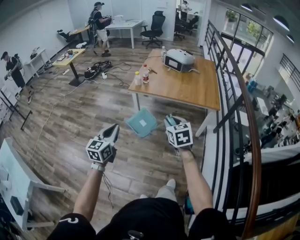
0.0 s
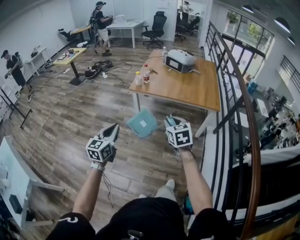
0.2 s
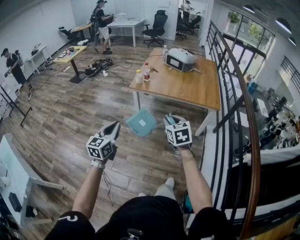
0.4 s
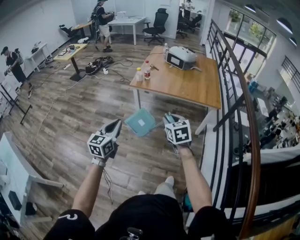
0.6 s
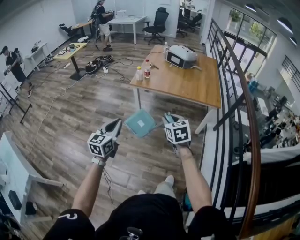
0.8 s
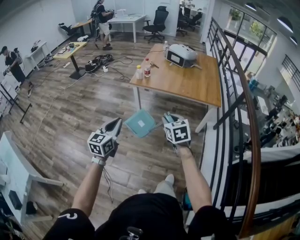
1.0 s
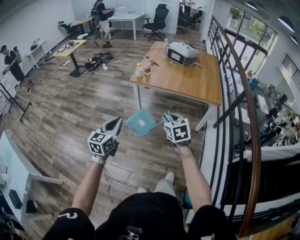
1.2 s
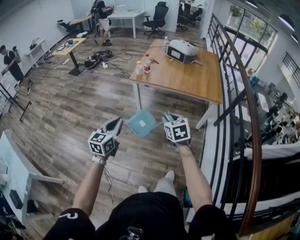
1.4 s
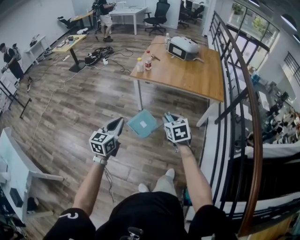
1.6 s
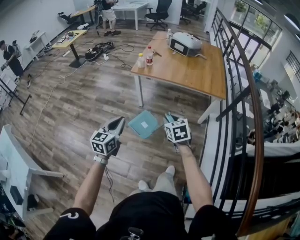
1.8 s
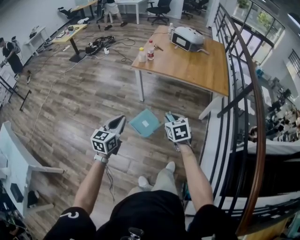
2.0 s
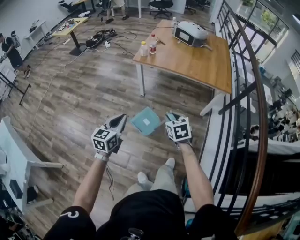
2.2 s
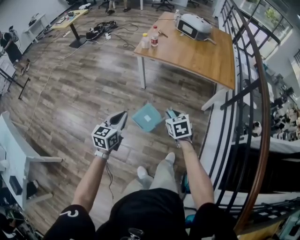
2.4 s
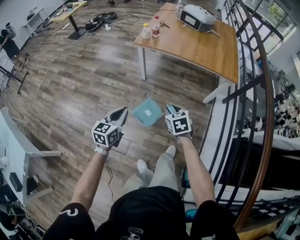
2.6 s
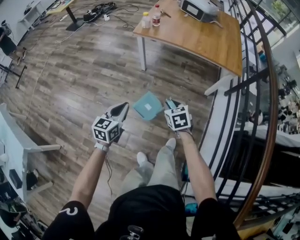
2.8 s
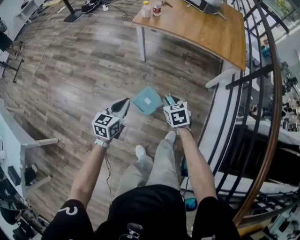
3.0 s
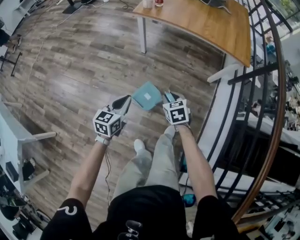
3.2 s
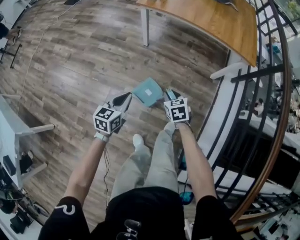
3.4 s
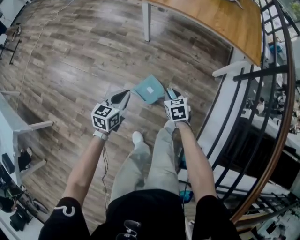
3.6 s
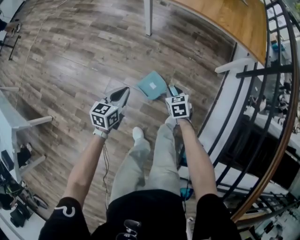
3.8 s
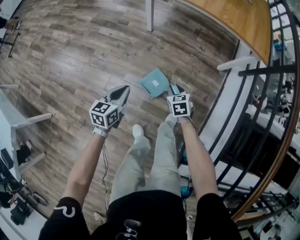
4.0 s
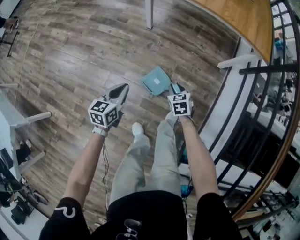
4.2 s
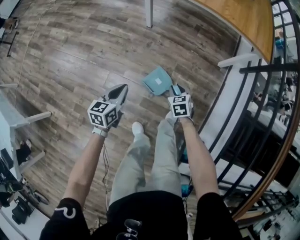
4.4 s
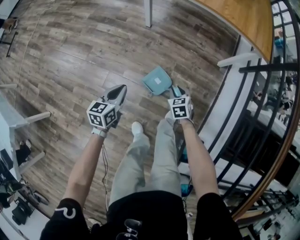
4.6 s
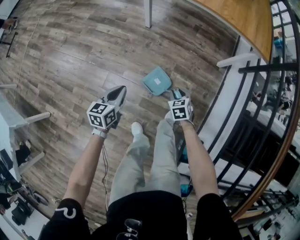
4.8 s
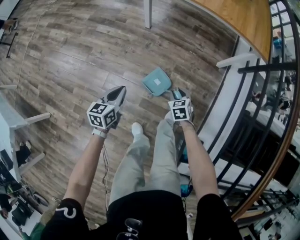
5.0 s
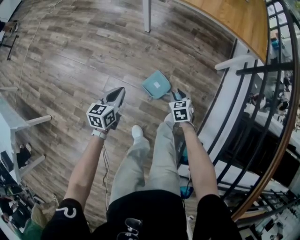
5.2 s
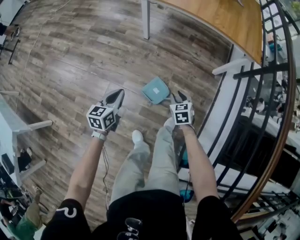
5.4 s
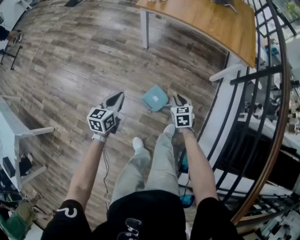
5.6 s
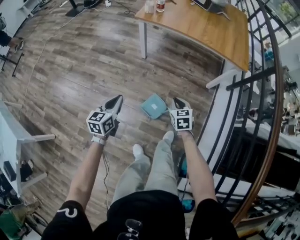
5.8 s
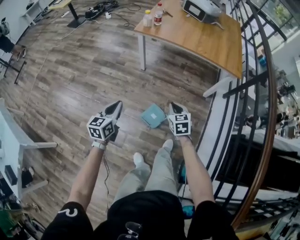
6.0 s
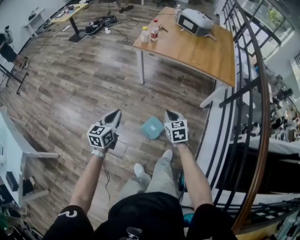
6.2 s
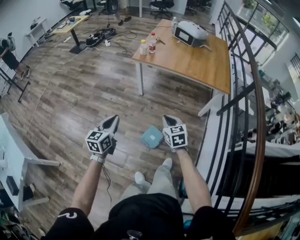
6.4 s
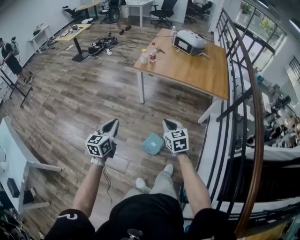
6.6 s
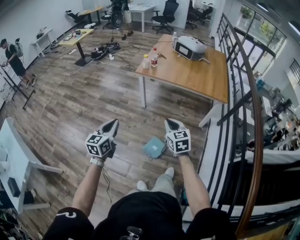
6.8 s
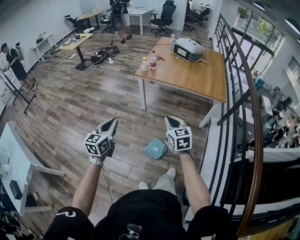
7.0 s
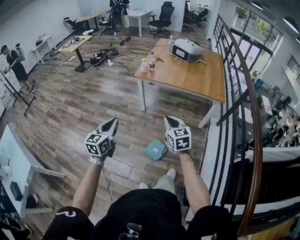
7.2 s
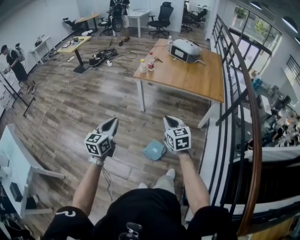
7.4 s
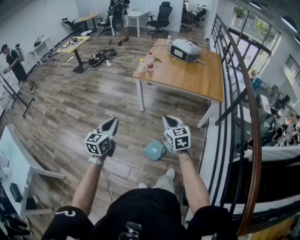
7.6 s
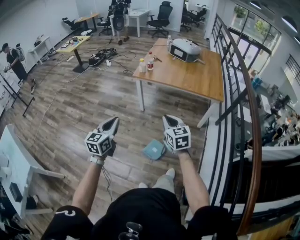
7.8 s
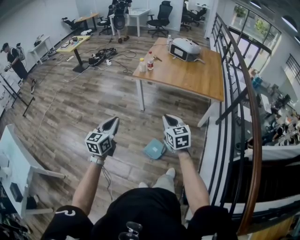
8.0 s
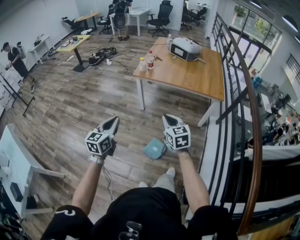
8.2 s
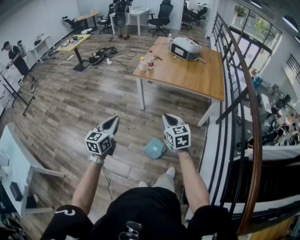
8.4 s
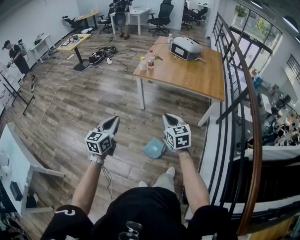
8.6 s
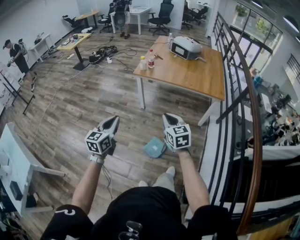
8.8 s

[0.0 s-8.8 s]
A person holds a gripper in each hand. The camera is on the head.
0.0 to 1.4 s: The grippers make only small movements.
1.4 to 3.0 s: Both grippers move downward, roughly 25 cm.
3.0 to 4.4 s: The two grippers go about 20 cm downward.
4.4 to 5.8 s: Both grippers move upward, roughly 15 cm.
5.8 to 7.4 s: Both grippers move upward, some 30 cm. The right gripper changes its angle by approximately 20 degrees.
7.4 to 8.8 s: Both grippers stay put.

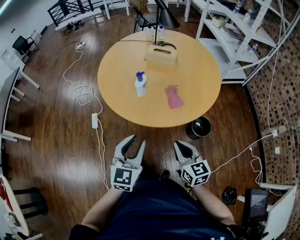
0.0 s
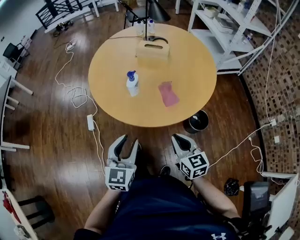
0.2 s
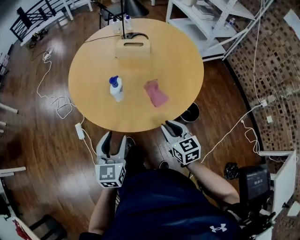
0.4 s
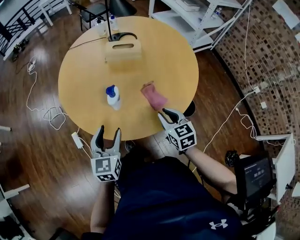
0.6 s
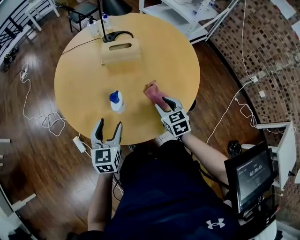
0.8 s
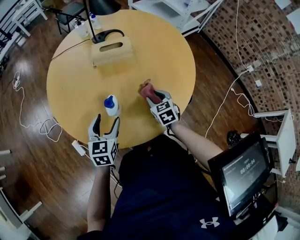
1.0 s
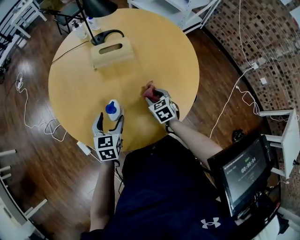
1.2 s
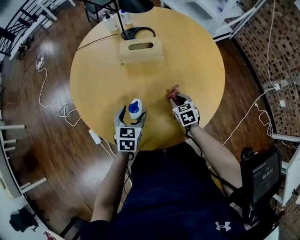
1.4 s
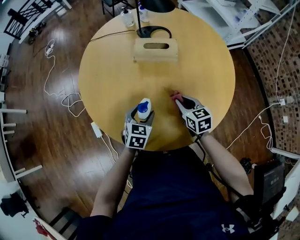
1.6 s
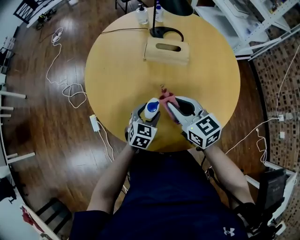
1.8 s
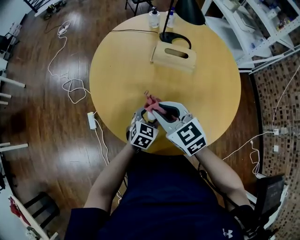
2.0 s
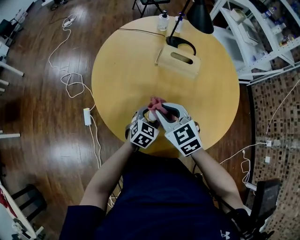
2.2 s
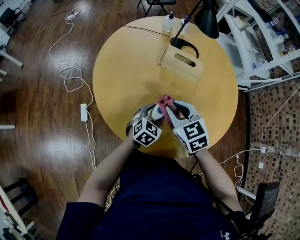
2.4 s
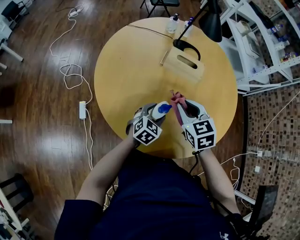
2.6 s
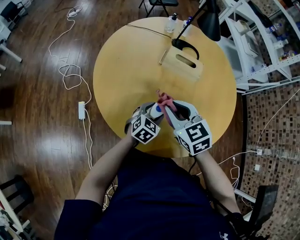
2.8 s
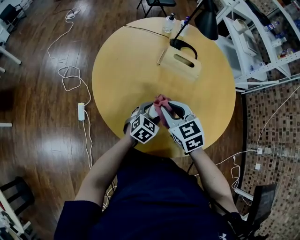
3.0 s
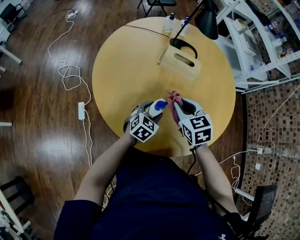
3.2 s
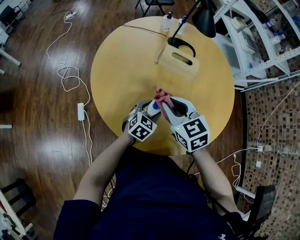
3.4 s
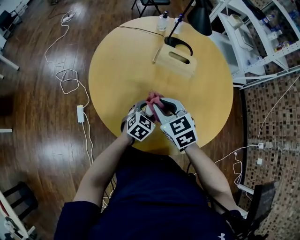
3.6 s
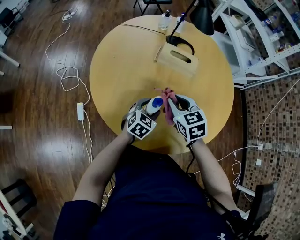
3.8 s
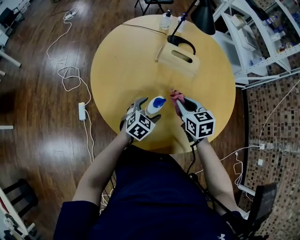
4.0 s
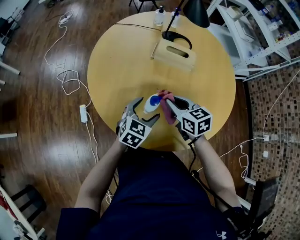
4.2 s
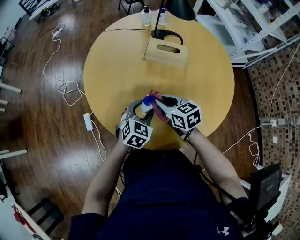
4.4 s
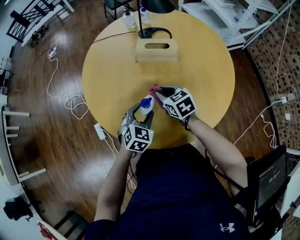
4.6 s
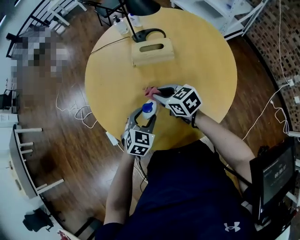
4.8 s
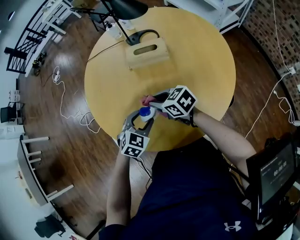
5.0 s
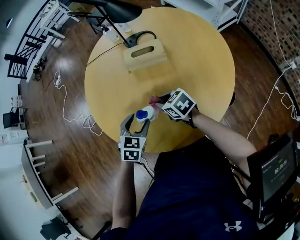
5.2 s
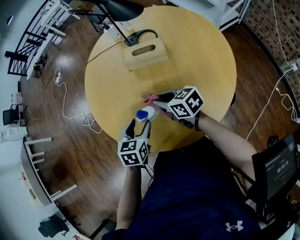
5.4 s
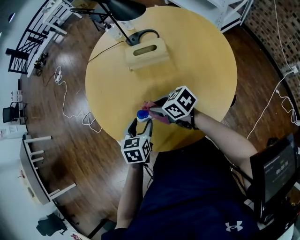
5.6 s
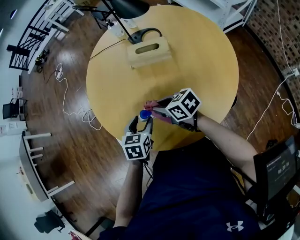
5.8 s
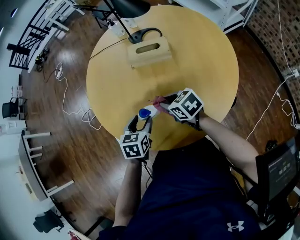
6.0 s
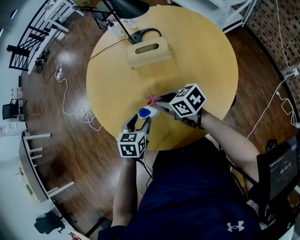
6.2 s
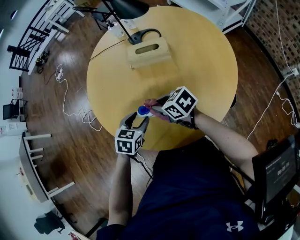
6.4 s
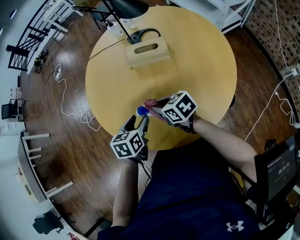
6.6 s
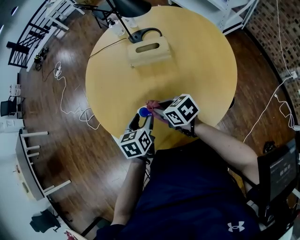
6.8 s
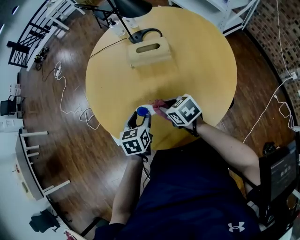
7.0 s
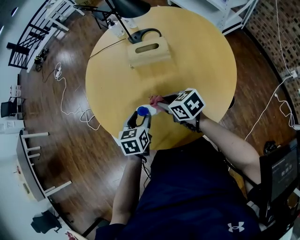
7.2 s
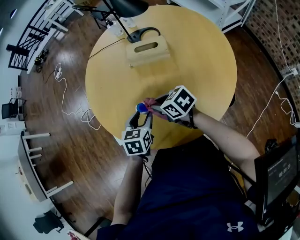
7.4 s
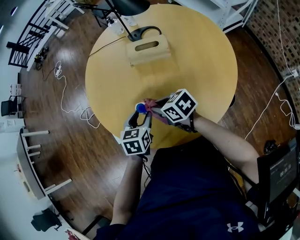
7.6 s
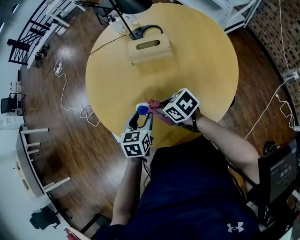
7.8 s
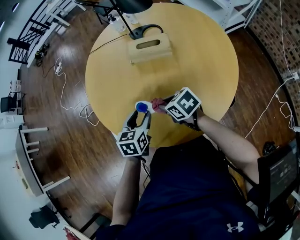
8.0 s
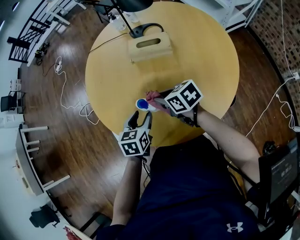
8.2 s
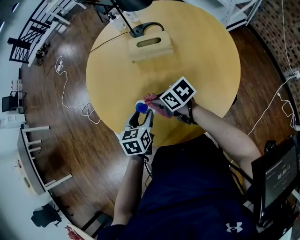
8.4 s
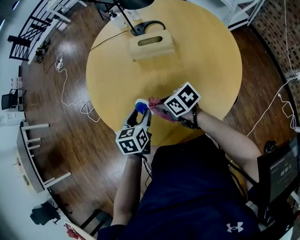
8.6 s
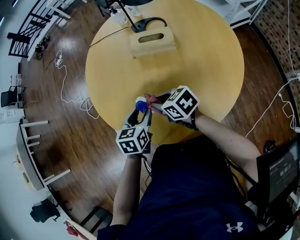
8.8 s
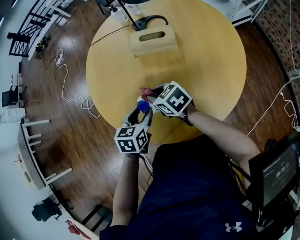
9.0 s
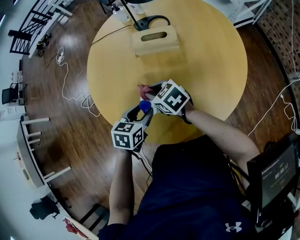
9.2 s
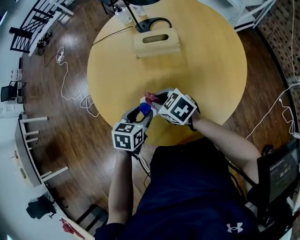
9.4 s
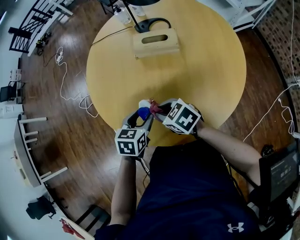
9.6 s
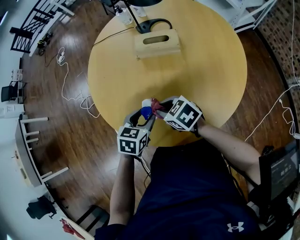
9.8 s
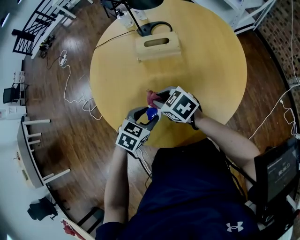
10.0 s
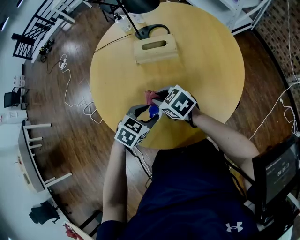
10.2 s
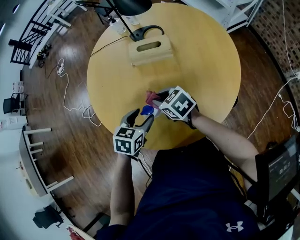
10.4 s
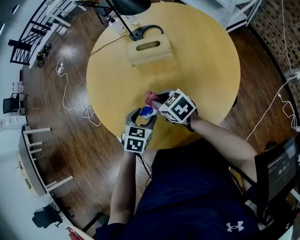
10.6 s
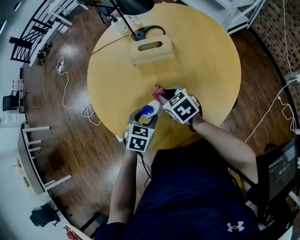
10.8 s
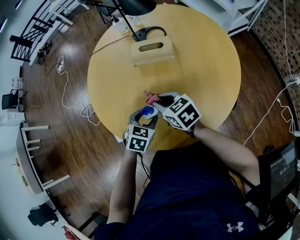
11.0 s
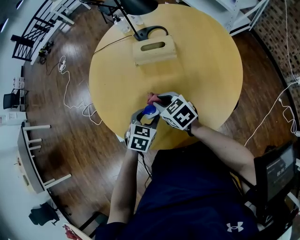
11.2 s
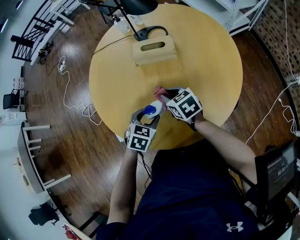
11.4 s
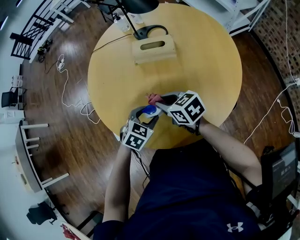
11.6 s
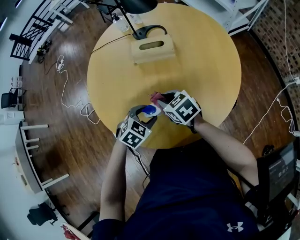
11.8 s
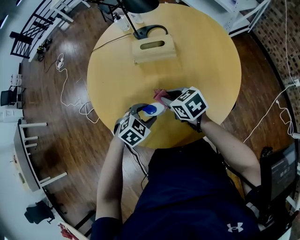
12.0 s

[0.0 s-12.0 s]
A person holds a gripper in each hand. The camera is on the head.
0.0 to 1.6 s: The right gripper is displaced forward by approximately 35 cm, and opens, then closes once more; the left gripper travels forward and downward by roughly 40 cm, swivels about 30 degrees, and opens up.
1.6 to 3.0 s: The right gripper swings left and right, some 15 cm each way, with 2 reversals, and swivels roughly 30 degrees.
3.0 to 4.4 s: The right gripper moves left and right over roughly 10 cm, changing direction 3 times, and turns by approximately 20 degrees.
4.4 to 6.0 s: The left gripper rotates about 20 degrees.
6.0 to 9.0 s: There are only small adjustments of the grippers.
9.0 to 10.4 s: The right gripper reaches about 5 cm backward, then returns.
10.4 to 12.0 s: The left gripper ends up roughly 5 cm from where it was, and changes its angle by approximately 40 degrees.

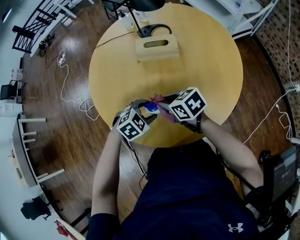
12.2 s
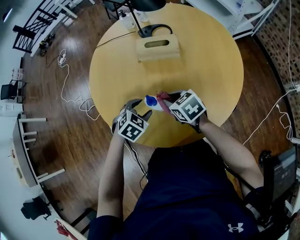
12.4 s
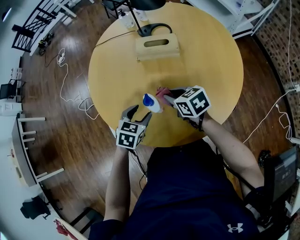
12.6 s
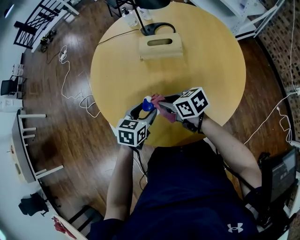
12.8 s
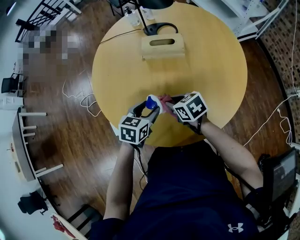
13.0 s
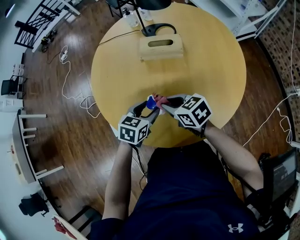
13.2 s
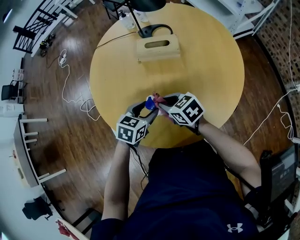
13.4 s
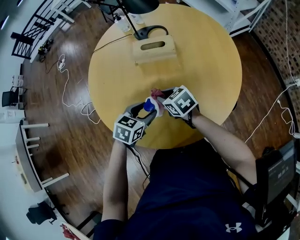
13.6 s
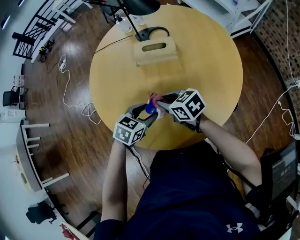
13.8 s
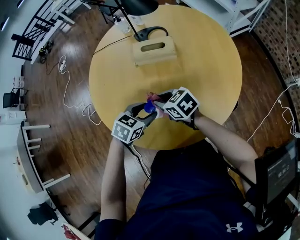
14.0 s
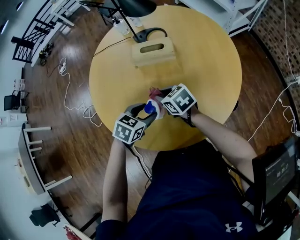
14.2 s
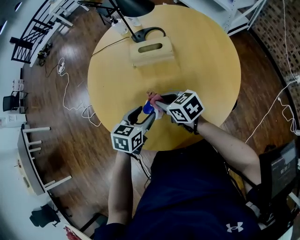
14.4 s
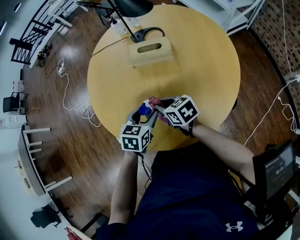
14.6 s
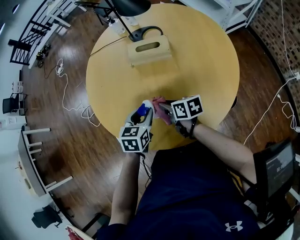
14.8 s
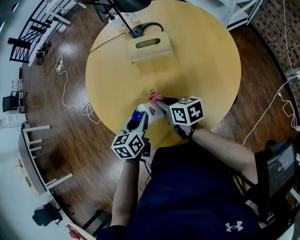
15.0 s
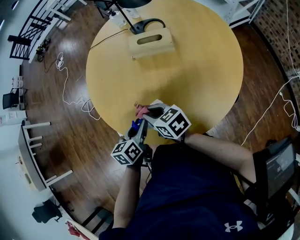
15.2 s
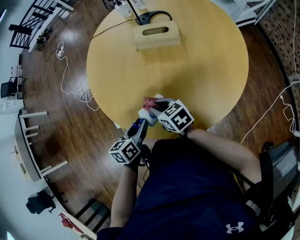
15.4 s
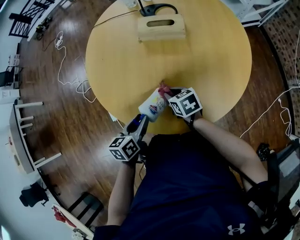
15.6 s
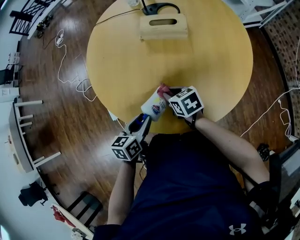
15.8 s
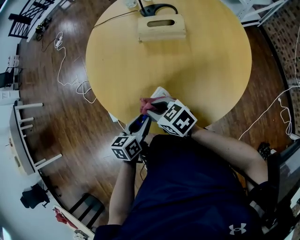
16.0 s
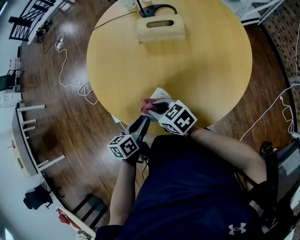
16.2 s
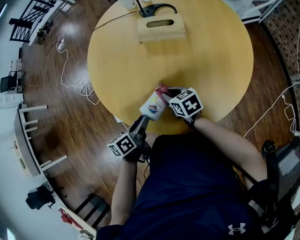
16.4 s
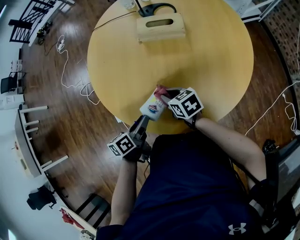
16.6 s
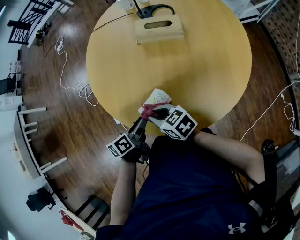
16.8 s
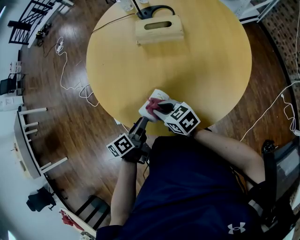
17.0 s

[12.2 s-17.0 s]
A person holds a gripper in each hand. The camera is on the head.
12.2 to 13.8 s: The left gripper changes its angle by approximately 30 degrees.
13.8 to 15.4 s: The left gripper moves to the left and backward, some 10 cm, and rolls counterclockwise, seen from behind, by some 40 degrees. Meanwhile the right gripper heads backward and to the left, covering approximately 10 cm.
15.4 to 17.0 s: The left gripper swivels roughly 20 degrees. The right gripper moves left and right over approximately 10 cm, changing direction 3 times.
